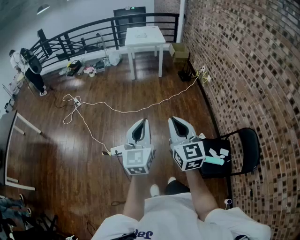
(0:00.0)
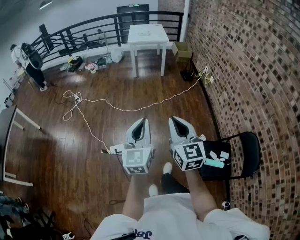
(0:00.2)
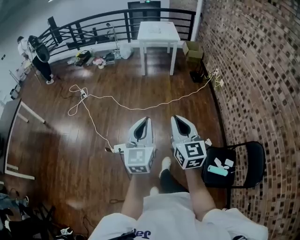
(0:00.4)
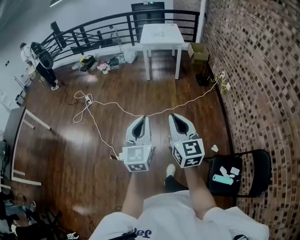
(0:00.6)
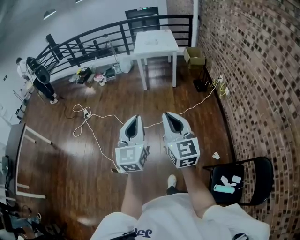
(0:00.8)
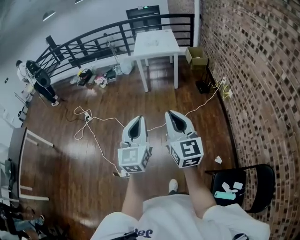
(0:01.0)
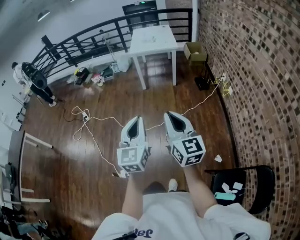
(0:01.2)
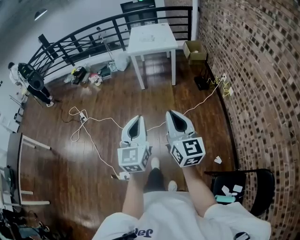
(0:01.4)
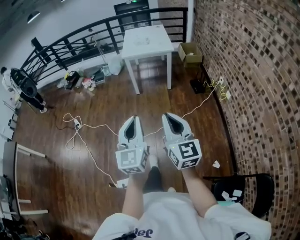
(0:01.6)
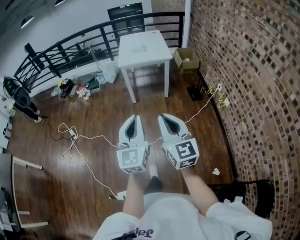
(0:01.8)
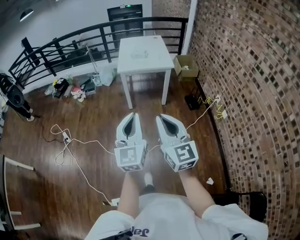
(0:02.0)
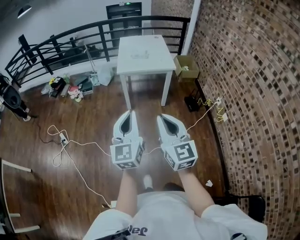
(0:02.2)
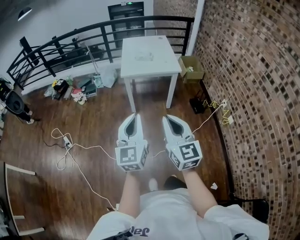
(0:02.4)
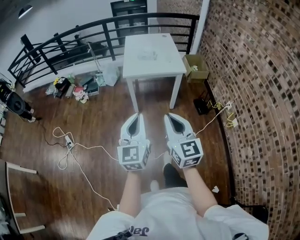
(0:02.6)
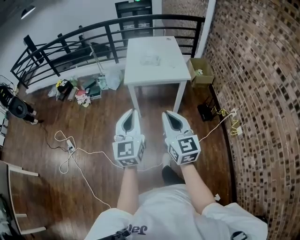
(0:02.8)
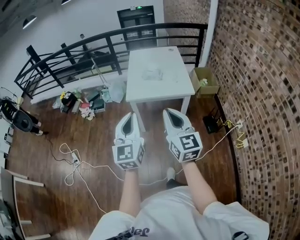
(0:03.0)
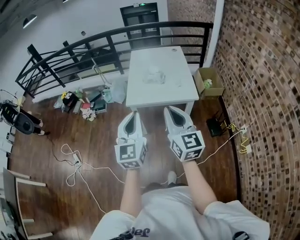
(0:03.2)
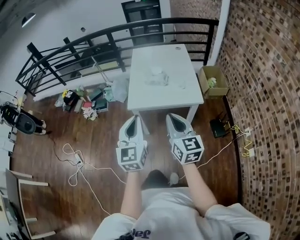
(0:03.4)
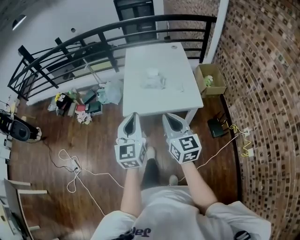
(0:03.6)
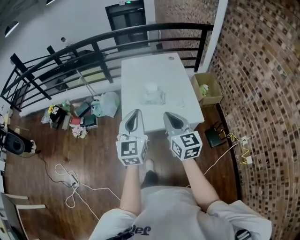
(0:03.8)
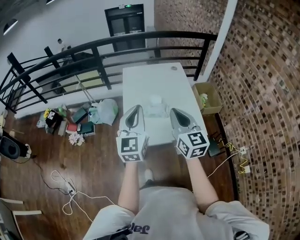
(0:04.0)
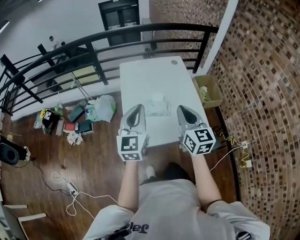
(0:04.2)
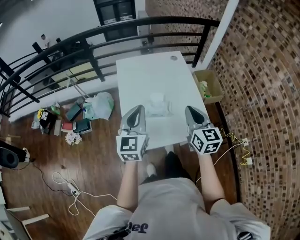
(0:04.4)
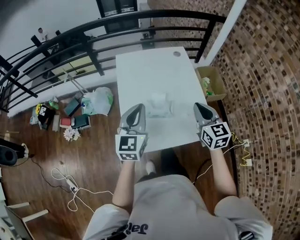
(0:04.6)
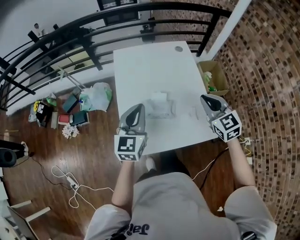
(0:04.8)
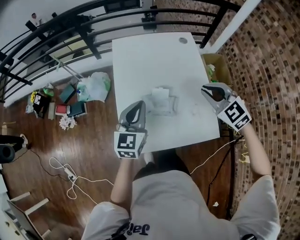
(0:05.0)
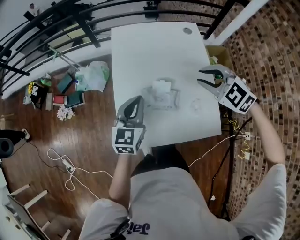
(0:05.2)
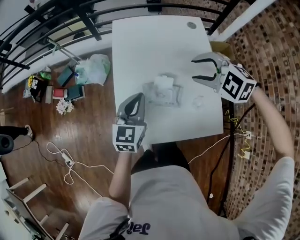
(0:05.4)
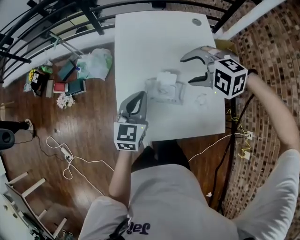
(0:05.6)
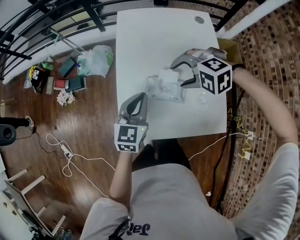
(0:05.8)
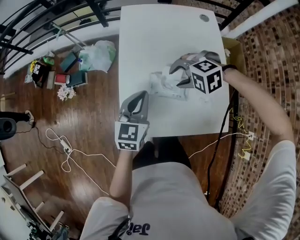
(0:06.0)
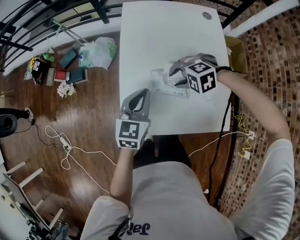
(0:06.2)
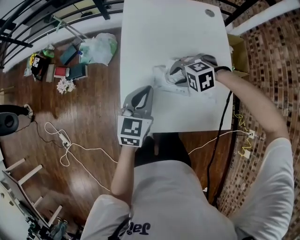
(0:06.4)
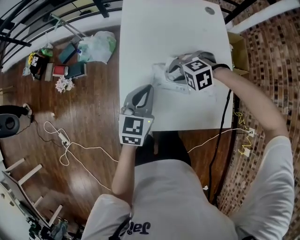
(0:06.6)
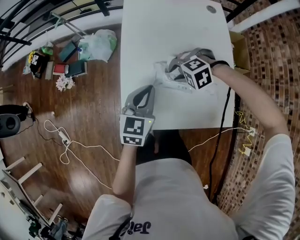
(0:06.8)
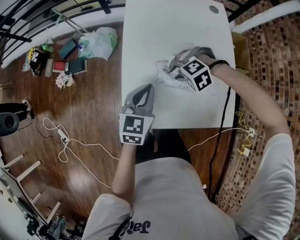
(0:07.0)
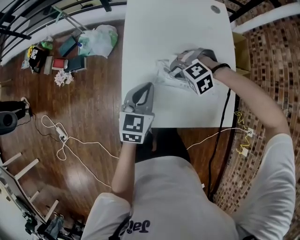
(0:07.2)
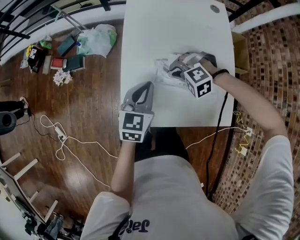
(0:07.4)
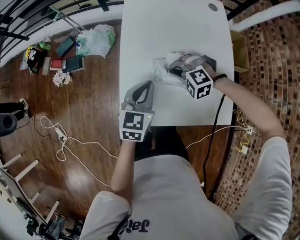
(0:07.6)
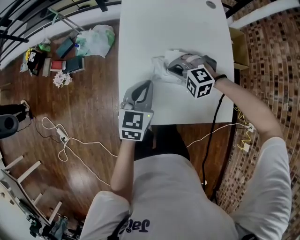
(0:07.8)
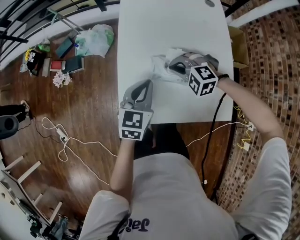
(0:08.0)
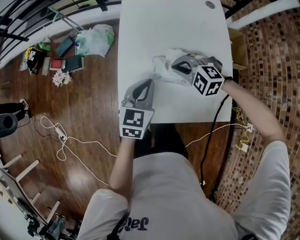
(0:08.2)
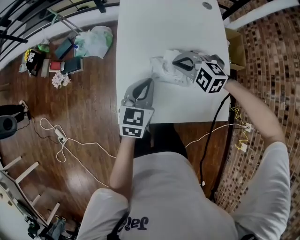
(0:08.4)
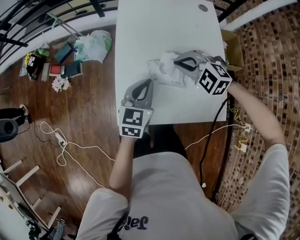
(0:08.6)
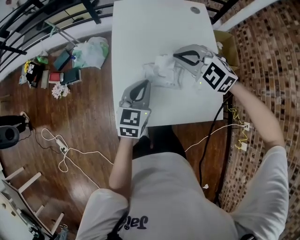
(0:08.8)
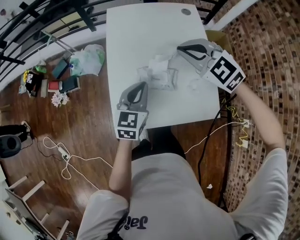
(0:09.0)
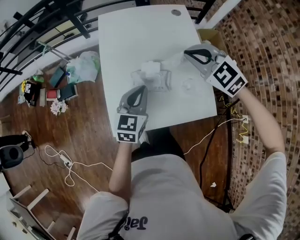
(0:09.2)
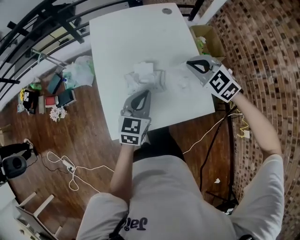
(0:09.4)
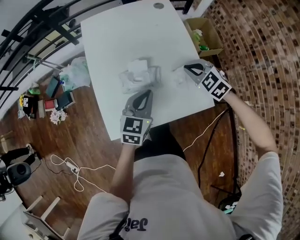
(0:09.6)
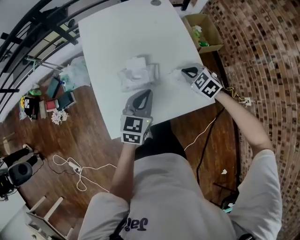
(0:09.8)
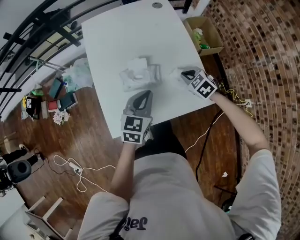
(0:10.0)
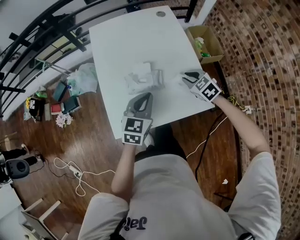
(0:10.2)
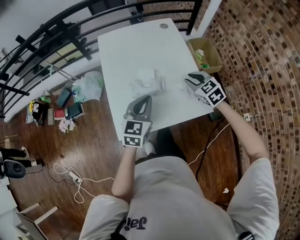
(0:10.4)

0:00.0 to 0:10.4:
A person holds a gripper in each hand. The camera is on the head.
0:00.0 to 0:01.4: The two grippers travel together, forward, approximately 40 cm.
0:01.4 to 0:03.0: The two grippers travel together, forward, roughly 60 cm.
0:03.0 to 0:04.4: The two grippers travel together, forward, approximately 50 cm.
0:04.4 to 0:06.0: The grippers both shift downward by roughly 20 cm. The right gripper tilts its fingers roughly 50 degrees downward, and opens up.
0:06.0 to 0:07.4: The right gripper travels downward by approximately 10 cm, and closes its fingers.
0:07.4 to 0:09.0: The left gripper goes roughly 5 cm upward; the right gripper heads upward, covering some 25 cm, and angles its fingers upward, by some 40 degrees.
0:09.0 to 0:10.4: The right gripper travels to the right, downward and backward by approximately 20 cm, and rotates approximately 40 degrees, while the left gripper goes about 10 cm backward and to the right.

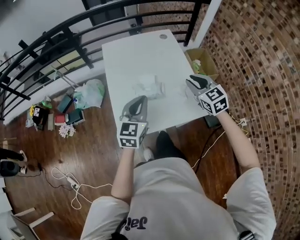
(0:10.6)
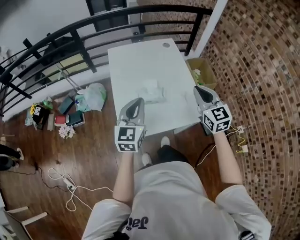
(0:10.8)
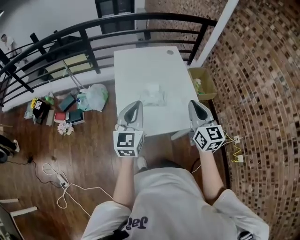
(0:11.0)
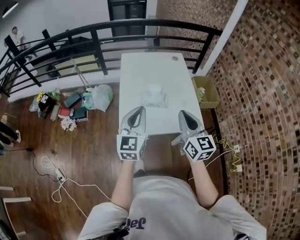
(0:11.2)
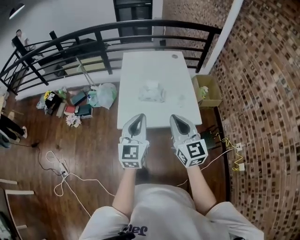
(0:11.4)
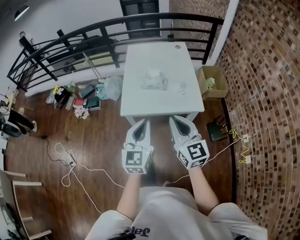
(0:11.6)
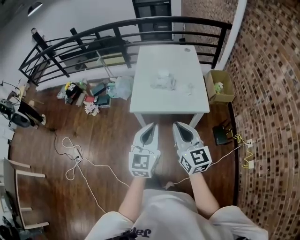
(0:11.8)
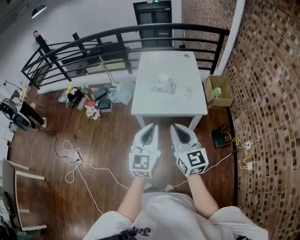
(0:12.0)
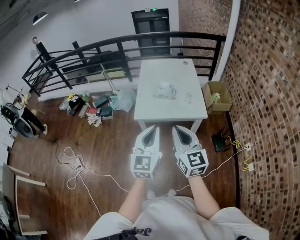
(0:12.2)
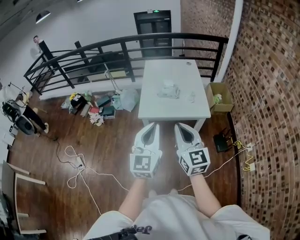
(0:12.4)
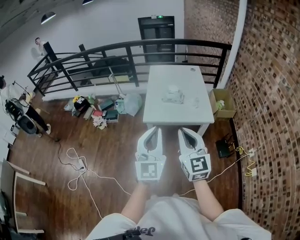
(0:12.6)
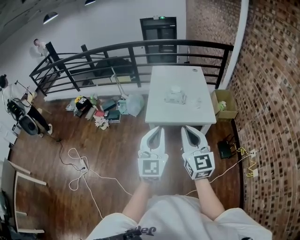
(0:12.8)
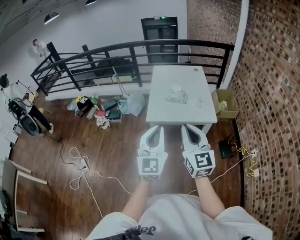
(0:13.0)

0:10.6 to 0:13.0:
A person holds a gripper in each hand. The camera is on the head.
0:10.6 to 0:11.8: Both grippers travel together backward, some 35 cm. The right gripper turns by about 30 degrees; the left gripper changes its angle by approximately 20 degrees.
0:11.8 to 0:13.0: The left gripper shifts approximately 15 cm to the left, upward and backward; the right gripper is displaced upward, to the left and backward by roughly 15 cm.

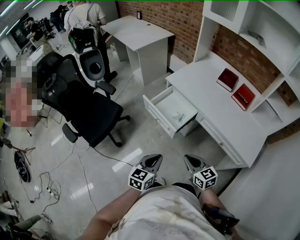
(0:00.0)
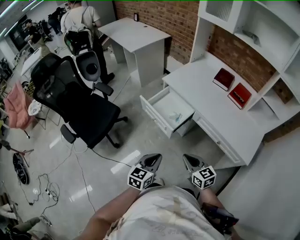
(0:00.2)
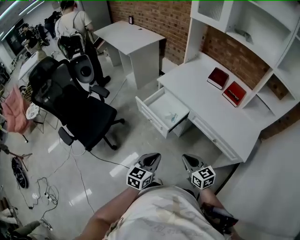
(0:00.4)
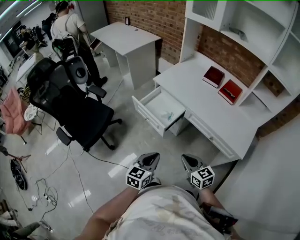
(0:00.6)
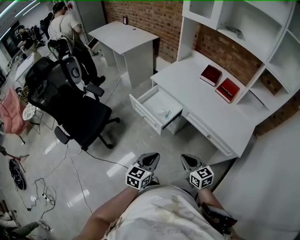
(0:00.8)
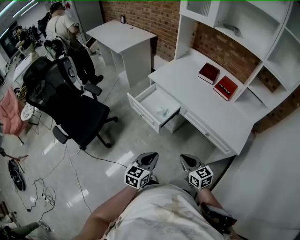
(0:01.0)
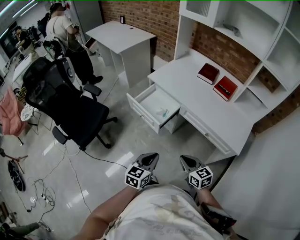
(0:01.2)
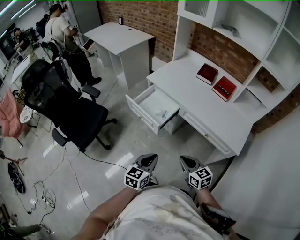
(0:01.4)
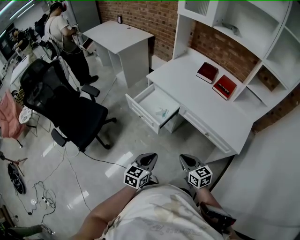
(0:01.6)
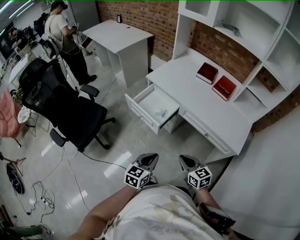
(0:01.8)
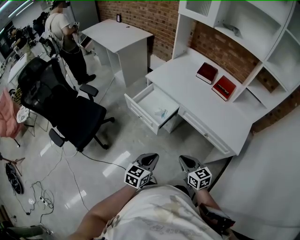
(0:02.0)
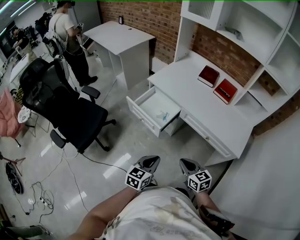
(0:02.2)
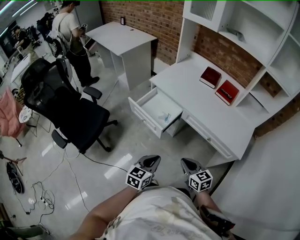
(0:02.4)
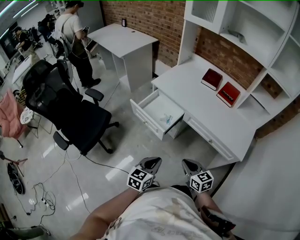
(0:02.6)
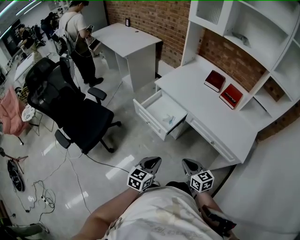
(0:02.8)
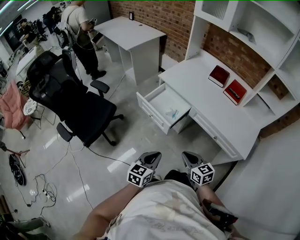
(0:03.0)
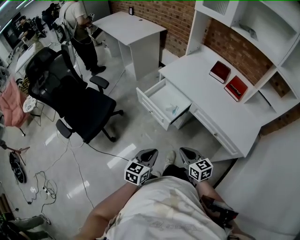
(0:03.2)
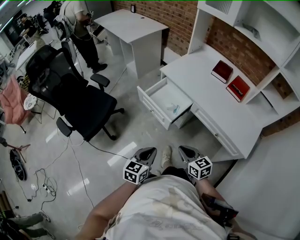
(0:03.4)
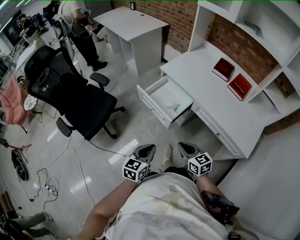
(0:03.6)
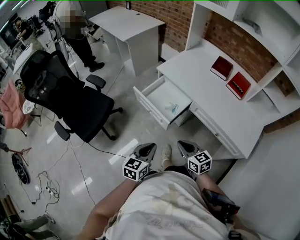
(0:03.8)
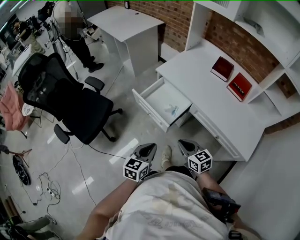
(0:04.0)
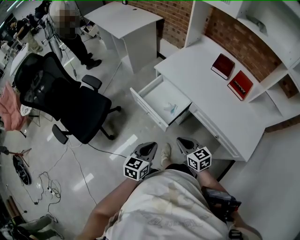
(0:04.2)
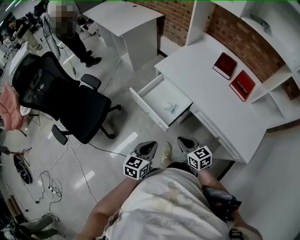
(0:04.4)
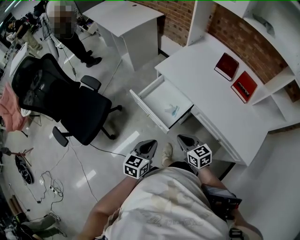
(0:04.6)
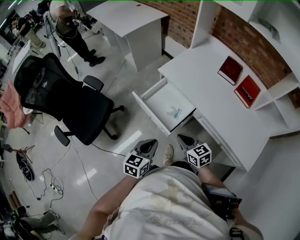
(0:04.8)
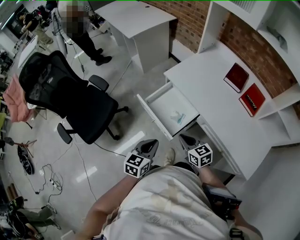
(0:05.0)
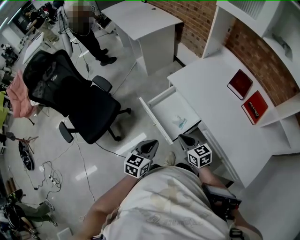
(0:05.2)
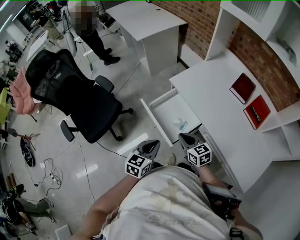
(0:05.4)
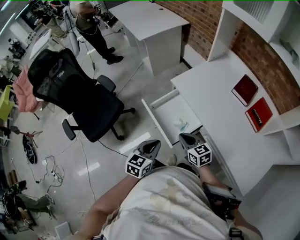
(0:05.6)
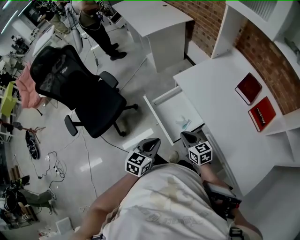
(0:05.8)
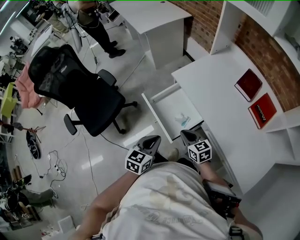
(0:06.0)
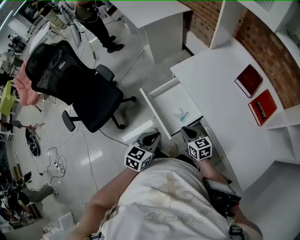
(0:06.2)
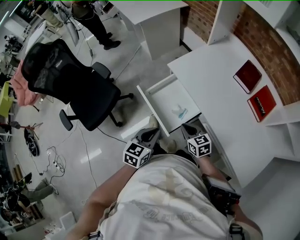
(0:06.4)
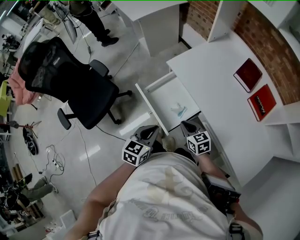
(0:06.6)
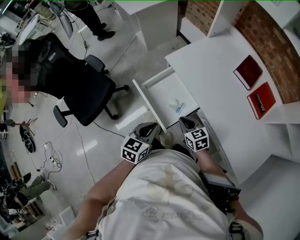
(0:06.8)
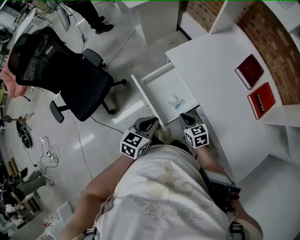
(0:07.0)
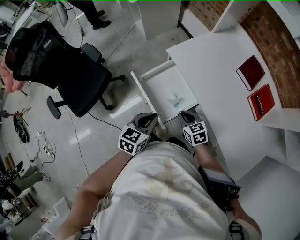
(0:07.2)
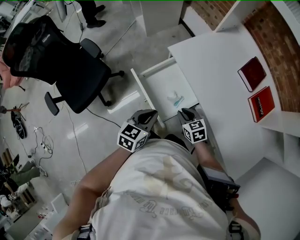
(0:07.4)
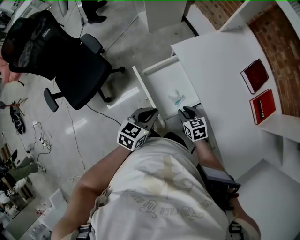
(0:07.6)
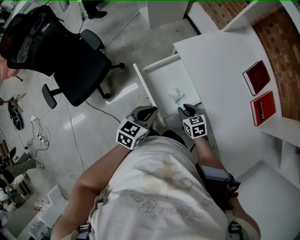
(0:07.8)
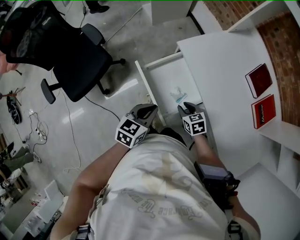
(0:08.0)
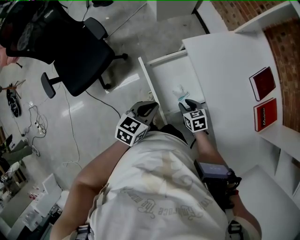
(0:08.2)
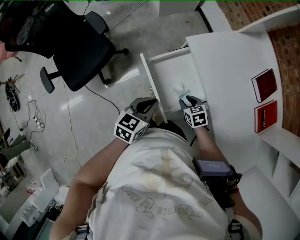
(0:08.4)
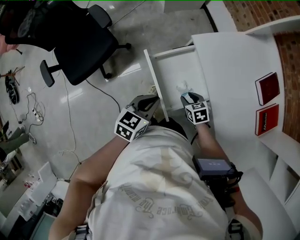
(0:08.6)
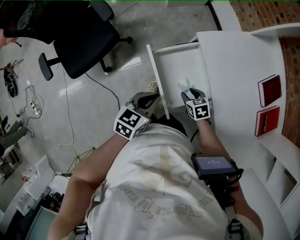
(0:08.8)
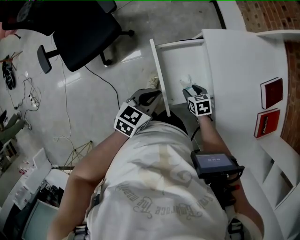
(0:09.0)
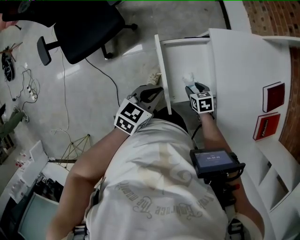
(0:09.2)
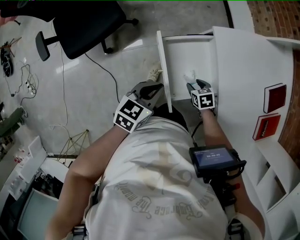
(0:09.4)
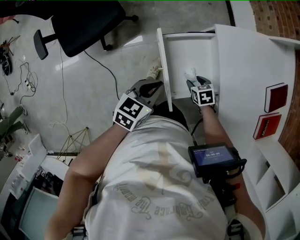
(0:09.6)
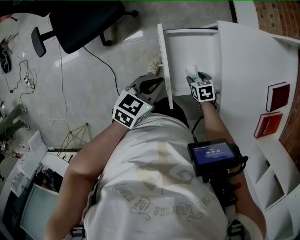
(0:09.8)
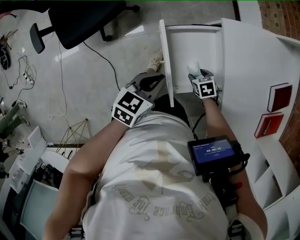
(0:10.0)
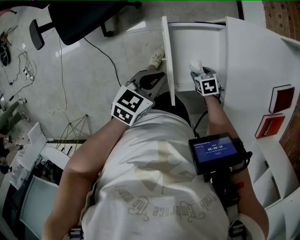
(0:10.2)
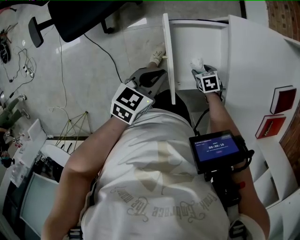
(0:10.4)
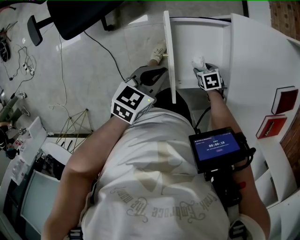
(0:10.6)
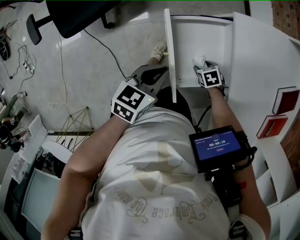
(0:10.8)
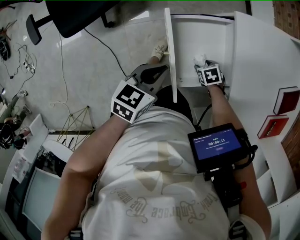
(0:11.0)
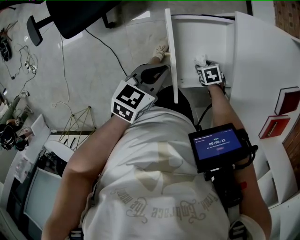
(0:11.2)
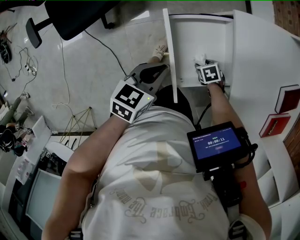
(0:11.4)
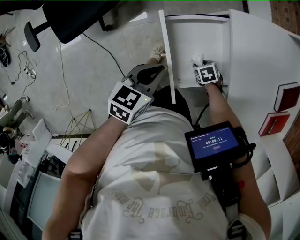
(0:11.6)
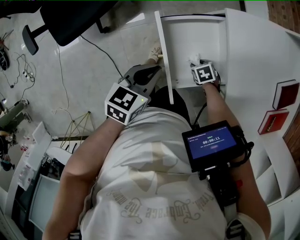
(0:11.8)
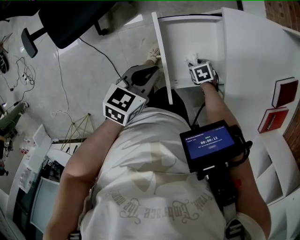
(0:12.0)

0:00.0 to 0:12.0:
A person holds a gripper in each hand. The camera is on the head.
0:00.0 to 0:01.6: The right gripper is displaced to the right and backward by some 10 cm; the left gripper travels to the right by roughly 5 cm.
0:01.6 to 0:03.0: The right gripper ends up about 5 cm from where it was.
0:03.0 to 0:04.4: The two grippers go approximately 15 cm forward.
0:04.4 to 0:06.0: The two grippers go approximately 15 cm forward.
0:06.0 to 0:07.6: The left gripper is displaced forward by about 5 cm; the right gripper travels downward and forward by roughly 10 cm, and swivels roughly 20 degrees.
0:07.6 to 0:09.0: The left gripper changes place by roughly 5 cm. Meanwhile the right gripper shifts about 10 cm downward and forward, and opens.
0:09.0 to 0:10.4: The right gripper is displaced downward by some 5 cm.
0:10.4 to 0:12.0: The grippers stay close to where they were, moving slightly.
